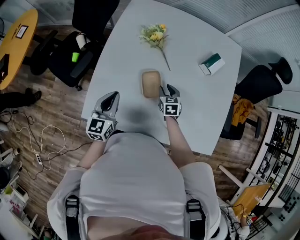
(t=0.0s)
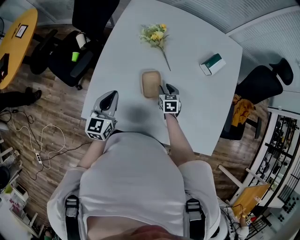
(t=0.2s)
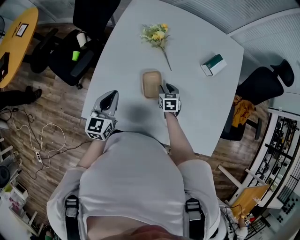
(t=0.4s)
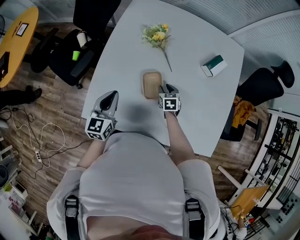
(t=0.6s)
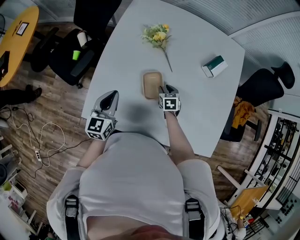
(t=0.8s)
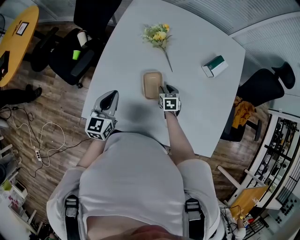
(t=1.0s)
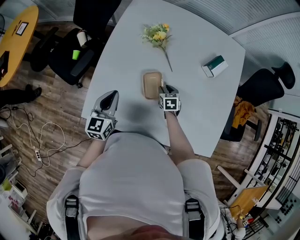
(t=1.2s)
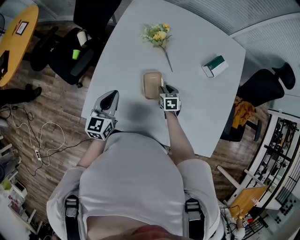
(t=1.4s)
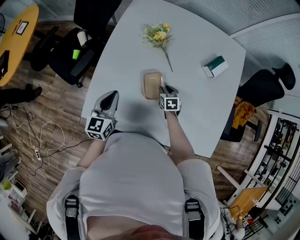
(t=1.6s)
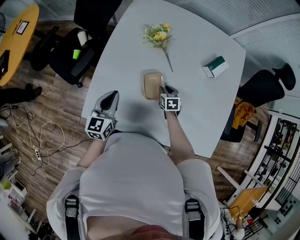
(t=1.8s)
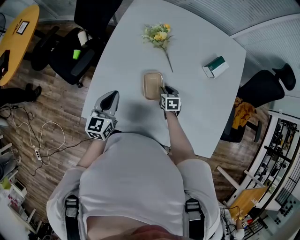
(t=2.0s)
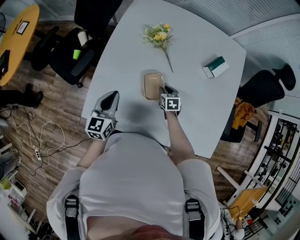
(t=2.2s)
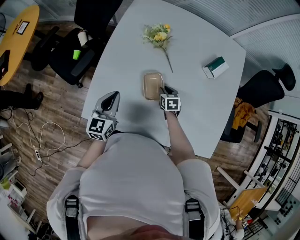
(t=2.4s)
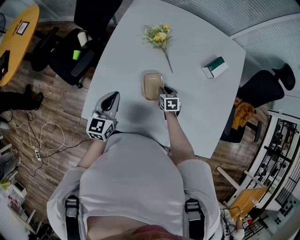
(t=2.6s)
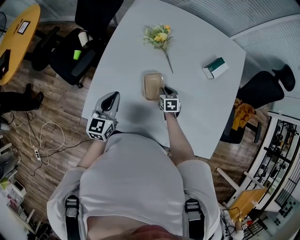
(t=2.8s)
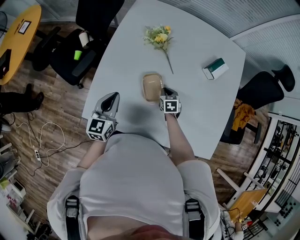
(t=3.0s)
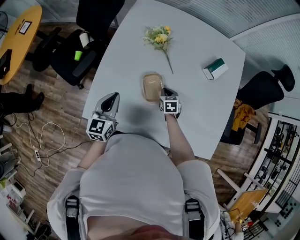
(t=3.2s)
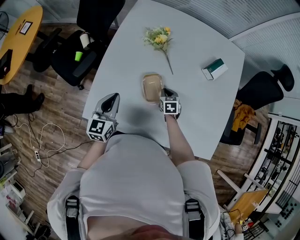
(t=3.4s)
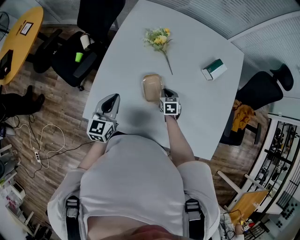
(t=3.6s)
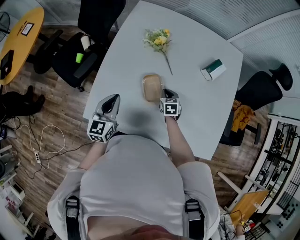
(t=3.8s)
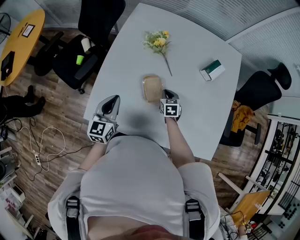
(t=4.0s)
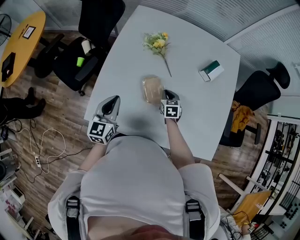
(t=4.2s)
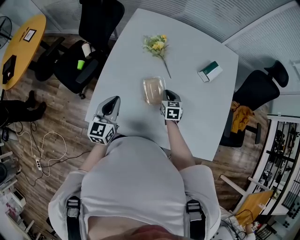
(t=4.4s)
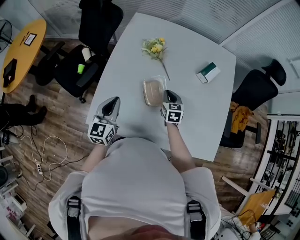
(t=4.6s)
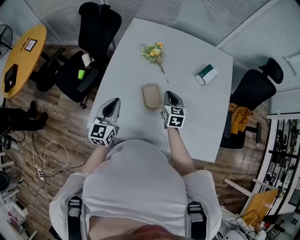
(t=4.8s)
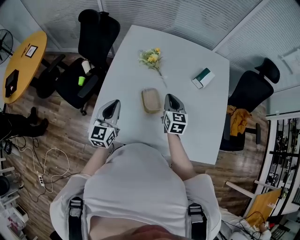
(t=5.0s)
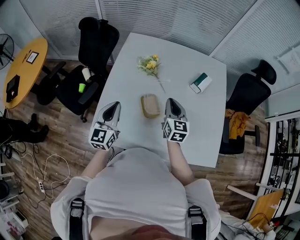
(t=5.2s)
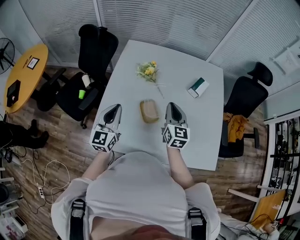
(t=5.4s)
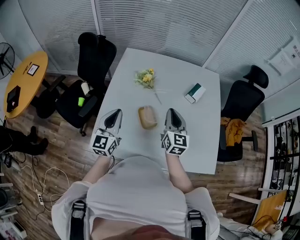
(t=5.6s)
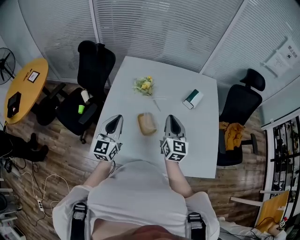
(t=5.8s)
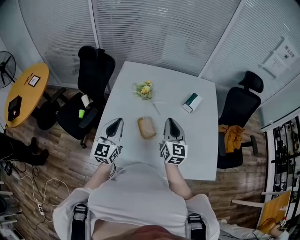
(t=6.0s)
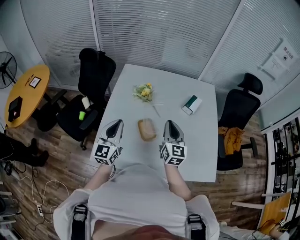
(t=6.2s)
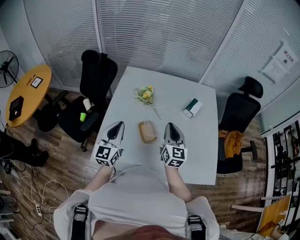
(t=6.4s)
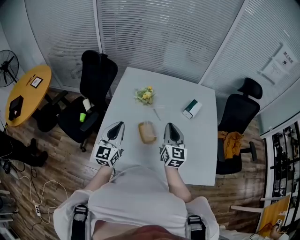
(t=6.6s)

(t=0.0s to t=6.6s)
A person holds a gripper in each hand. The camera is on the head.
t=0.0s - t=1.6s: The right gripper goes approximately 5 cm downward.
t=1.6s - t=3.2s: The right gripper closes its fingers.
t=3.2s - t=5.0s: The left gripper travels upward by roughly 10 cm. The right gripper heads upward, covering approximately 20 cm, and points its fingers about 30 degrees further upward.
t=5.0s - t=6.6s: The left gripper shifts approximately 10 cm upward, while the right gripper moves upward and backward, roughly 15 cm, and swivels about 20 degrees.

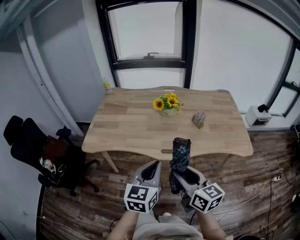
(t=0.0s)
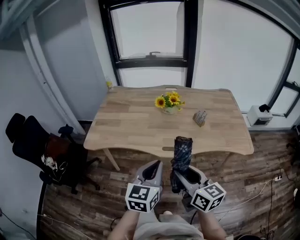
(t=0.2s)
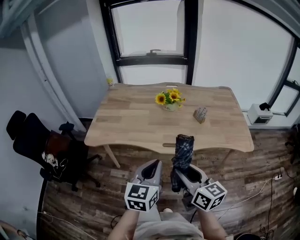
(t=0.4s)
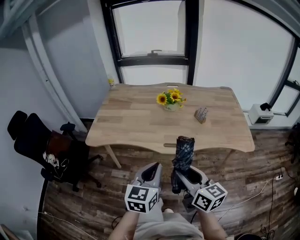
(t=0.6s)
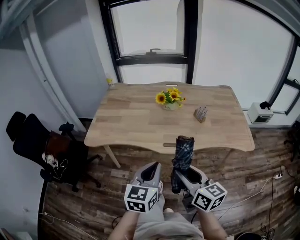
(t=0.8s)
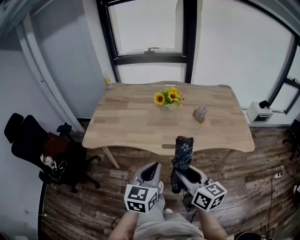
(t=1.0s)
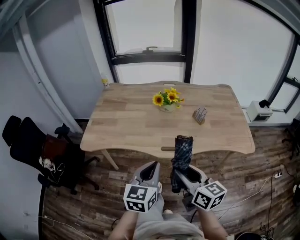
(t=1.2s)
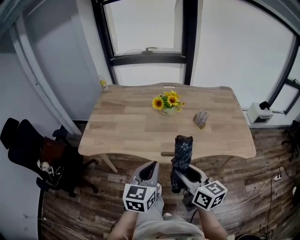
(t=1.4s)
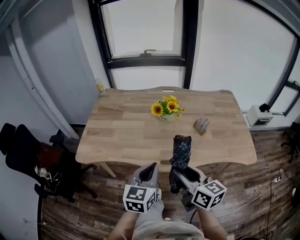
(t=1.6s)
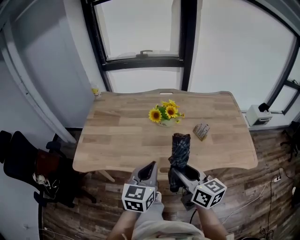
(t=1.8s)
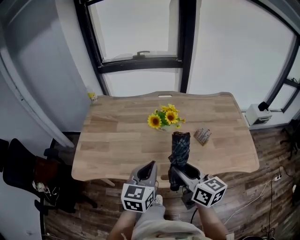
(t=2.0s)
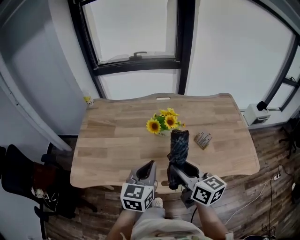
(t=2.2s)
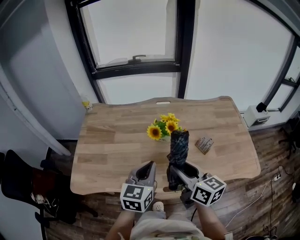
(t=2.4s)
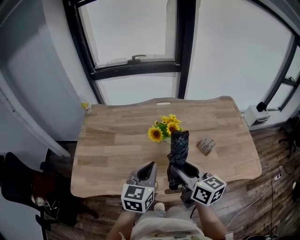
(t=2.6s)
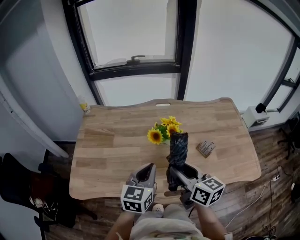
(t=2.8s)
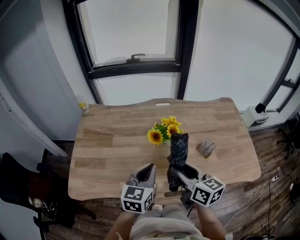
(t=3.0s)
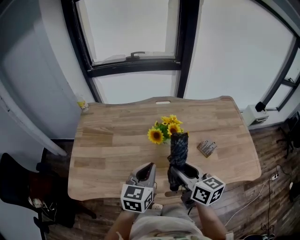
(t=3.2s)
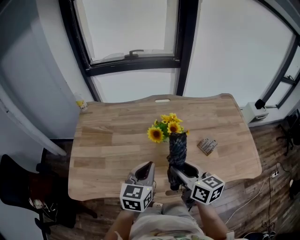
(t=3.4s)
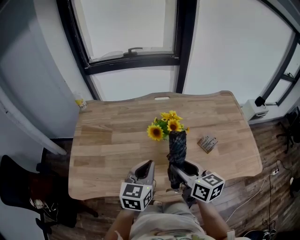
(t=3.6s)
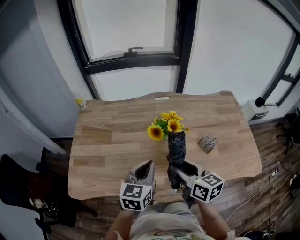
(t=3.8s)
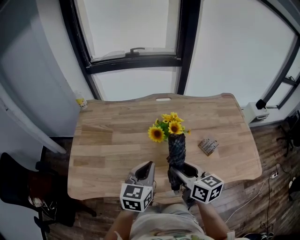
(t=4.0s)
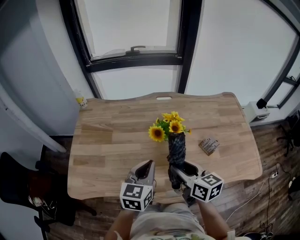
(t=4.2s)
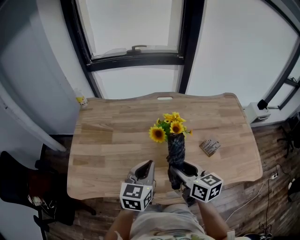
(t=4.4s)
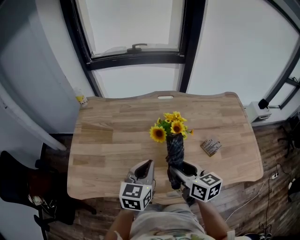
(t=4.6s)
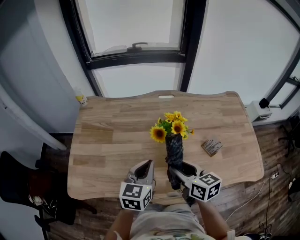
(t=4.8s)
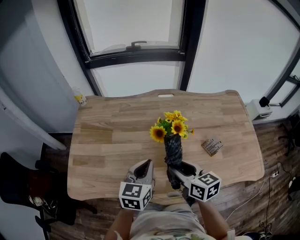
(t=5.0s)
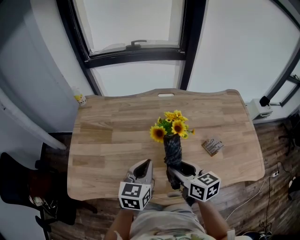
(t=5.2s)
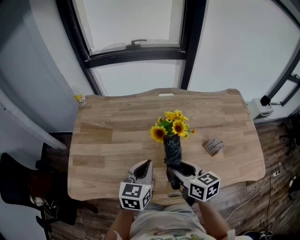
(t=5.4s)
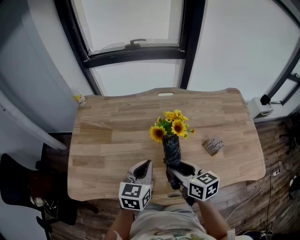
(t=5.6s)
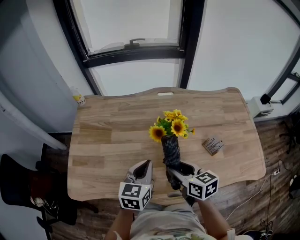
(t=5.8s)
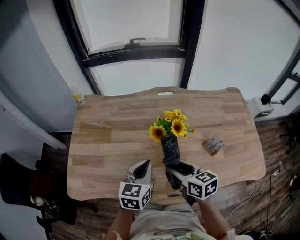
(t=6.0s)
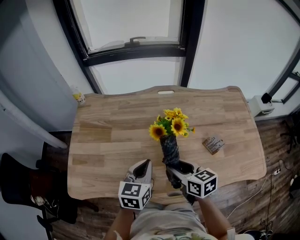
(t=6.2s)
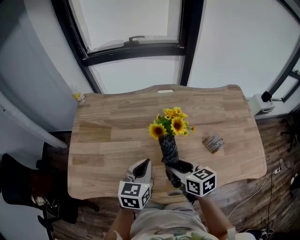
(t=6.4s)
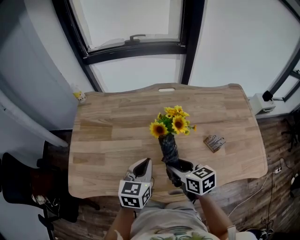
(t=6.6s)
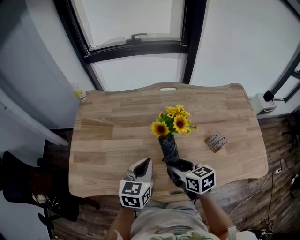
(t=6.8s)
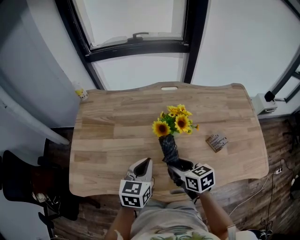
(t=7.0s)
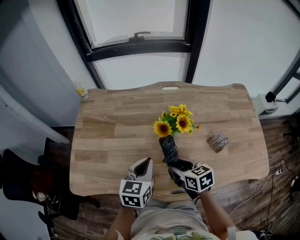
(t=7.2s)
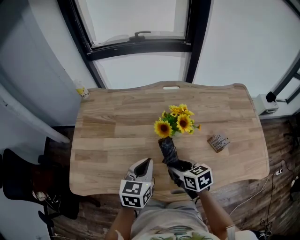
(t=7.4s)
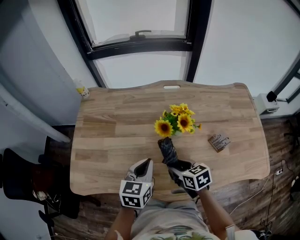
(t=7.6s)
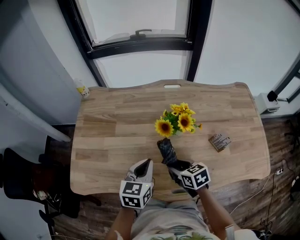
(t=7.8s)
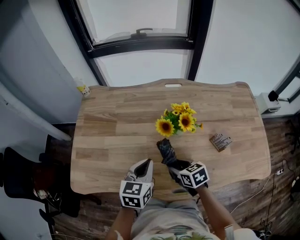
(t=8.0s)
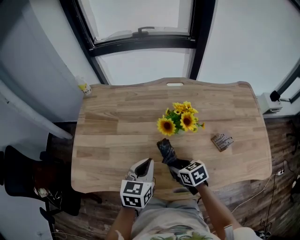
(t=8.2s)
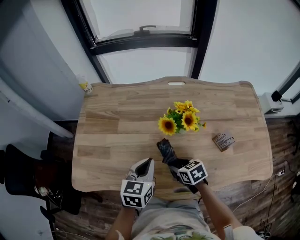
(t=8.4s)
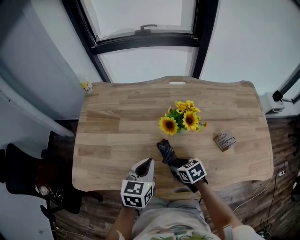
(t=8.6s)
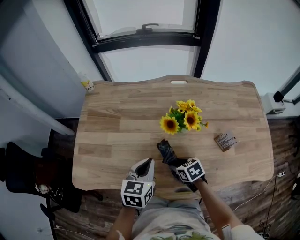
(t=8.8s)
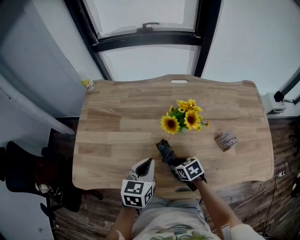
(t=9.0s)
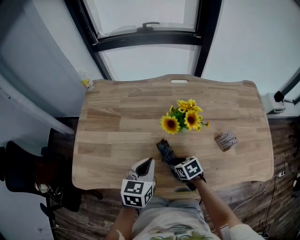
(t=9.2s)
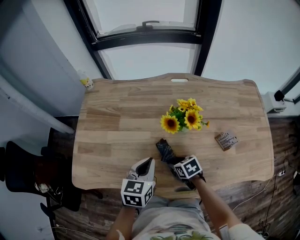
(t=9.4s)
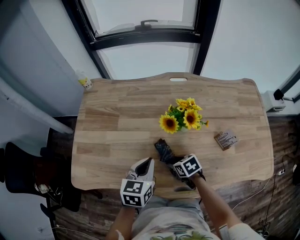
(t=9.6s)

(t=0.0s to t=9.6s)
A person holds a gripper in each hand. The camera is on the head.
t=0.0s - t=1.6s: Both grippers move forward, roughly 10 cm.
t=1.6s - t=3.2s: Both grippers travel together forward, roughly 25 cm.
t=3.2s - t=4.8s: The right gripper shifts approximately 5 cm downward.
t=4.8s - t=6.4s: The grippers make only small movements.
t=6.4s - t=8.0s: The right gripper is displaced downward by approximately 10 cm.
t=8.0s - t=9.6s: The right gripper is displaced downward by some 5 cm.

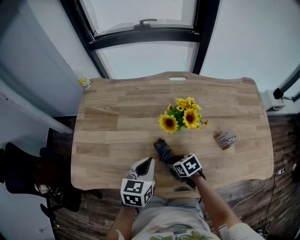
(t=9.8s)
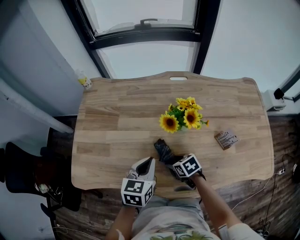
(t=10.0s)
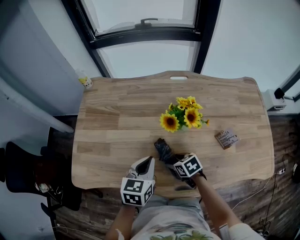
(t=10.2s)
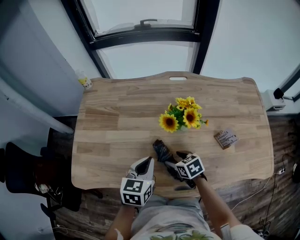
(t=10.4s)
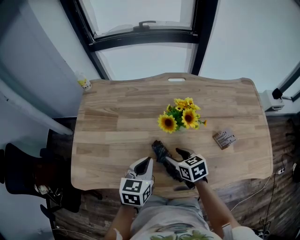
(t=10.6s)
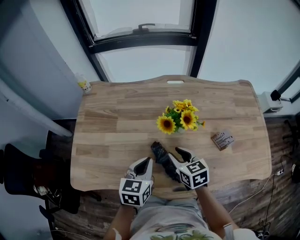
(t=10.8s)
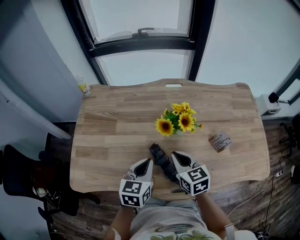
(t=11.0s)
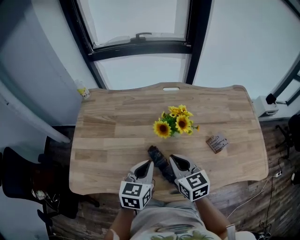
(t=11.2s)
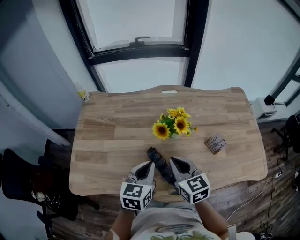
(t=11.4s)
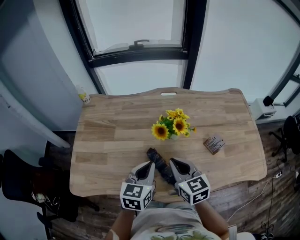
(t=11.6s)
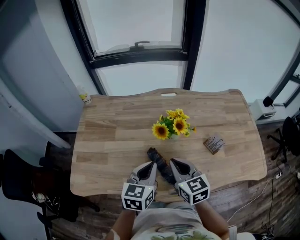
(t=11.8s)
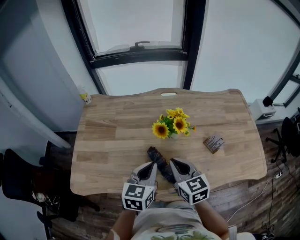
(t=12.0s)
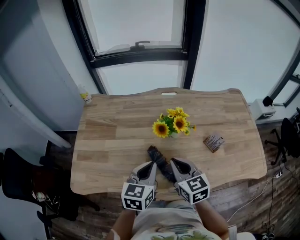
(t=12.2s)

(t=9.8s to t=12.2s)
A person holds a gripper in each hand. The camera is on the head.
t=9.8s - t=11.0s: The right gripper shifts approximately 15 cm upward, changes its angle by approximately 40 degrees, and closes up.
t=11.0s - t=12.2s: The left gripper changes place by about 5 cm. Meanwhile the right gripper heads upward and backward, covering approximately 5 cm.

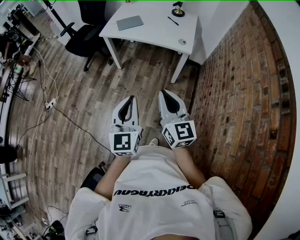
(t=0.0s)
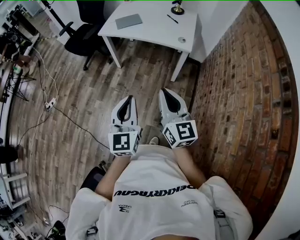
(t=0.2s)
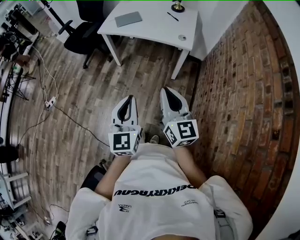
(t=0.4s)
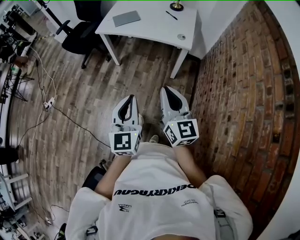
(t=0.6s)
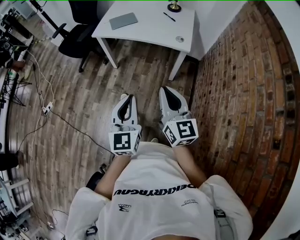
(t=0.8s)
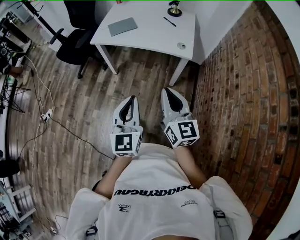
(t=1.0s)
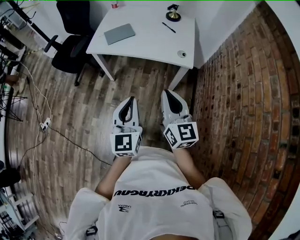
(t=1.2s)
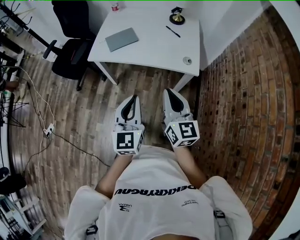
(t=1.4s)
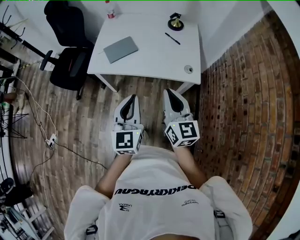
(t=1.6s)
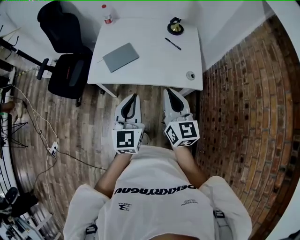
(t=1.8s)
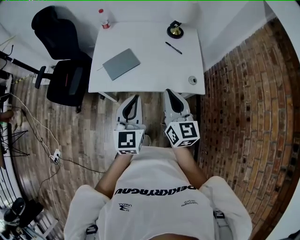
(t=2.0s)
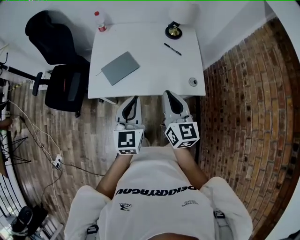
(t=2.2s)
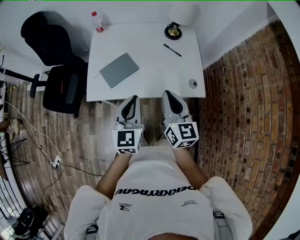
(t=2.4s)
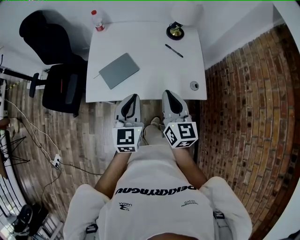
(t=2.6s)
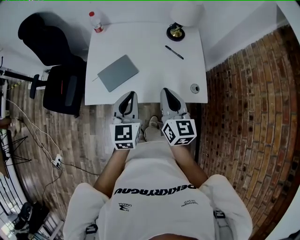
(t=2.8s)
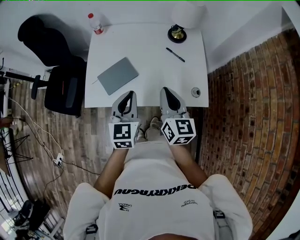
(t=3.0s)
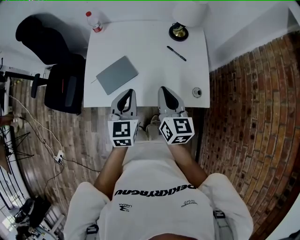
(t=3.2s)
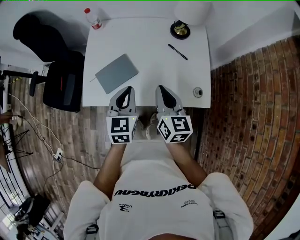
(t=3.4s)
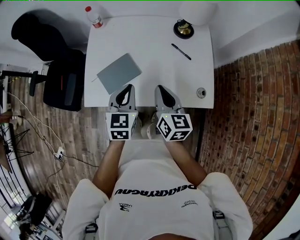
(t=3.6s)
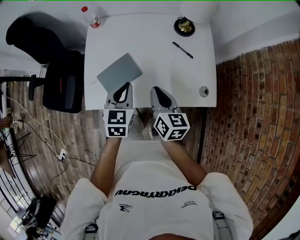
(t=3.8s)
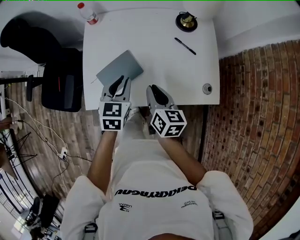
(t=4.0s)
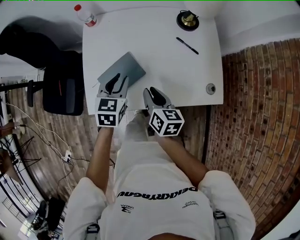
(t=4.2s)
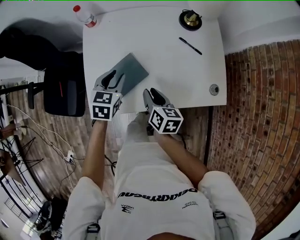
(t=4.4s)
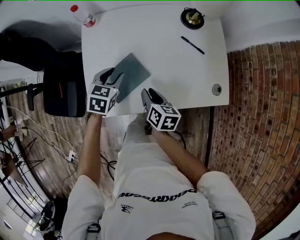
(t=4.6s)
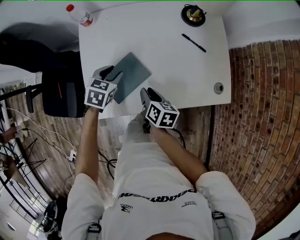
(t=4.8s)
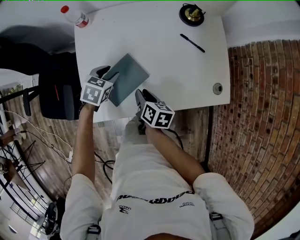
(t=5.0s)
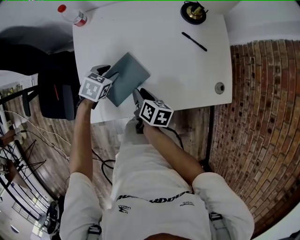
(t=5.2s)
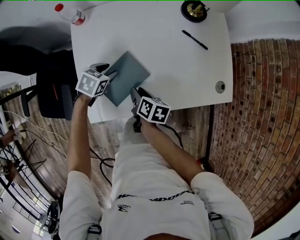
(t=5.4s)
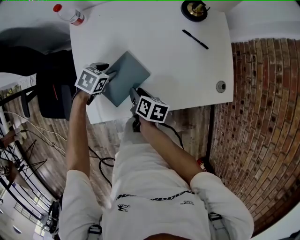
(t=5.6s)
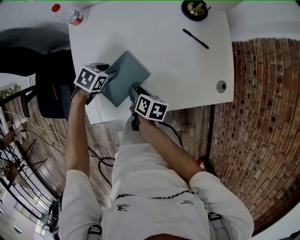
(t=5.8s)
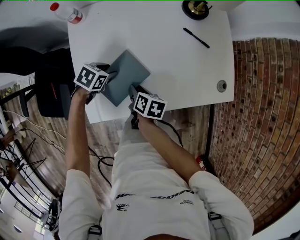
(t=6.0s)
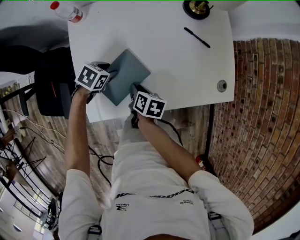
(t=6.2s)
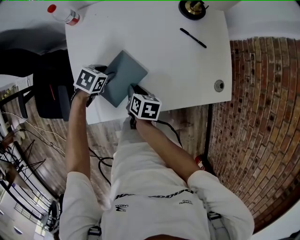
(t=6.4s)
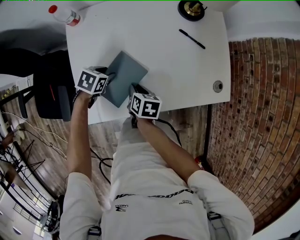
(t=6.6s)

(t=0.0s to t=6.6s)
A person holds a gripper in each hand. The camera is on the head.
t=0.0s - t=1.6s: Both grippers travel together forward, roughly 40 cm.
t=1.6s - t=3.2s: Both grippers move forward, approximately 30 cm.
t=3.2s - t=5.0s: The left gripper moves downward, forward and to the left, some 35 cm, angles its fingers downward, by roughly 40 degrees, and opens its fingers; the right gripper shifts some 30 cm downward and to the left, swivels some 50 degrees, and opens its fingers.
t=5.0s - t=6.6s: The left gripper goes some 5 cm downward, while the right gripper moves approximately 5 cm.
